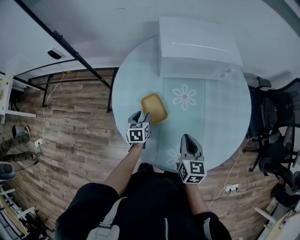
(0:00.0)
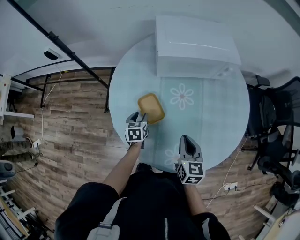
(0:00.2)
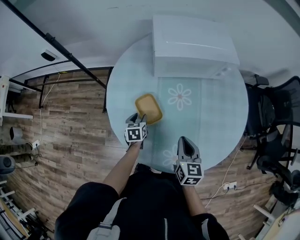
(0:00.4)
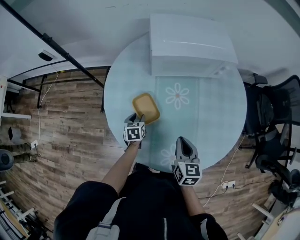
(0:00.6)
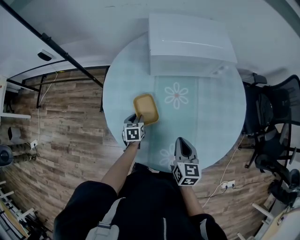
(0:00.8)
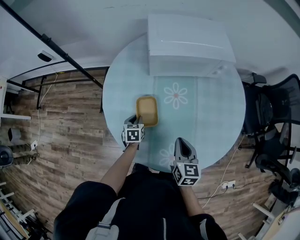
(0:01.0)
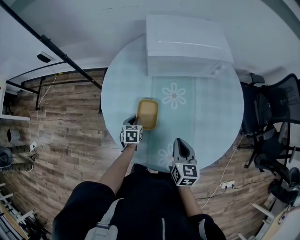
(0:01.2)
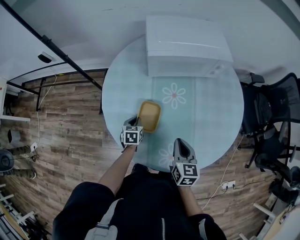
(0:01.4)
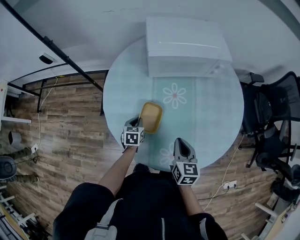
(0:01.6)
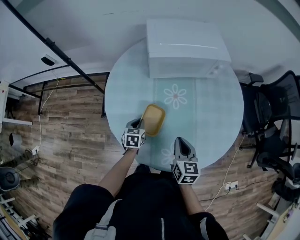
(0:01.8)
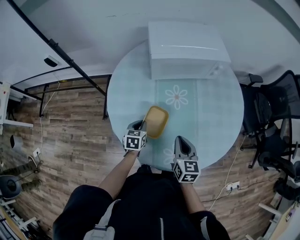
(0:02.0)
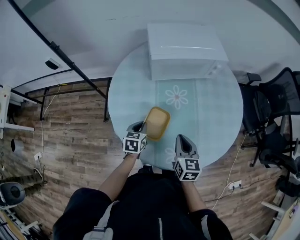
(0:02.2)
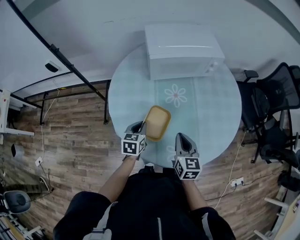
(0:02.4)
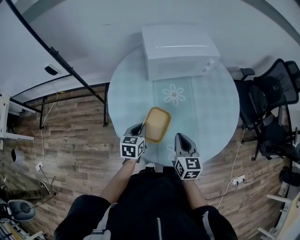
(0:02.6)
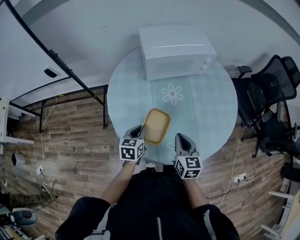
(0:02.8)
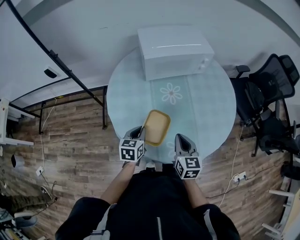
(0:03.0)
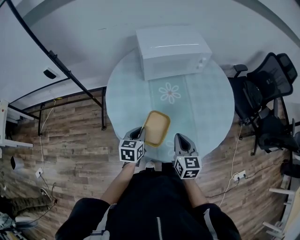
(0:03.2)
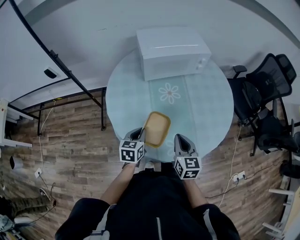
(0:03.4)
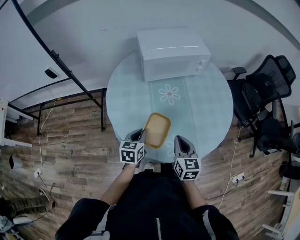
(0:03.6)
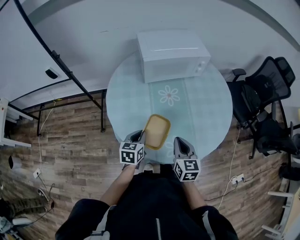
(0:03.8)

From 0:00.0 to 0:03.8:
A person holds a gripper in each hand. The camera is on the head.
From 0:00.0 to 0:01.2: The left gripper travels downward by approximately 5 cm, and closes up.
From 0:01.2 to 0:02.6: The right gripper shifts by some 5 cm. The left gripper goes roughly 15 cm upward and backward.
From 0:02.6 to 0:03.8: The left gripper heads backward, covering approximately 5 cm.

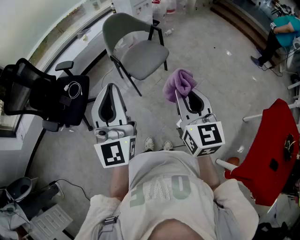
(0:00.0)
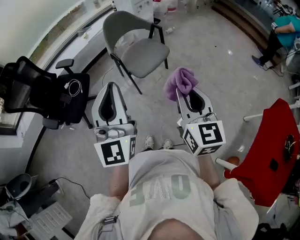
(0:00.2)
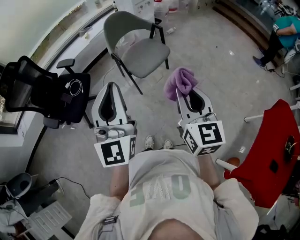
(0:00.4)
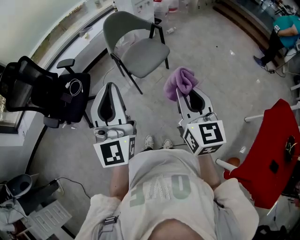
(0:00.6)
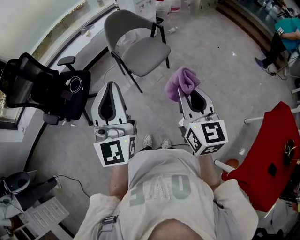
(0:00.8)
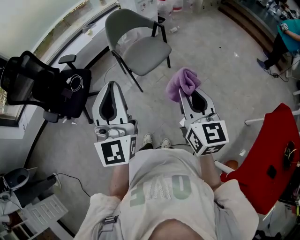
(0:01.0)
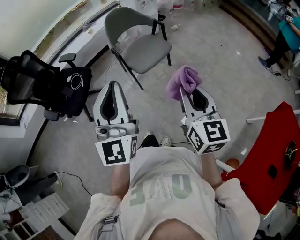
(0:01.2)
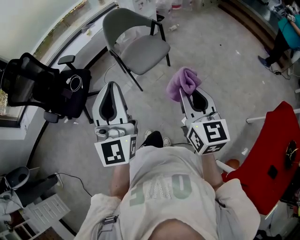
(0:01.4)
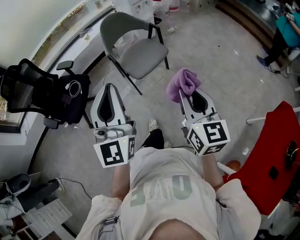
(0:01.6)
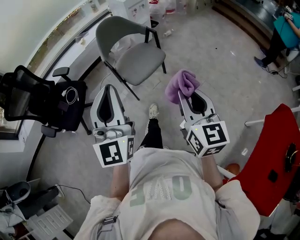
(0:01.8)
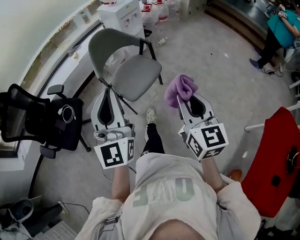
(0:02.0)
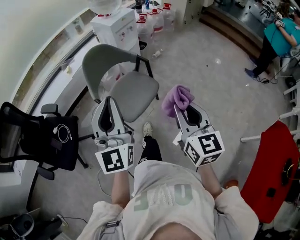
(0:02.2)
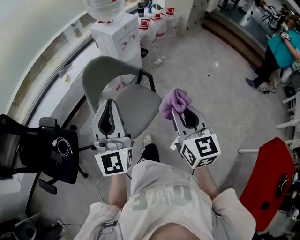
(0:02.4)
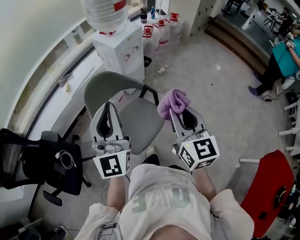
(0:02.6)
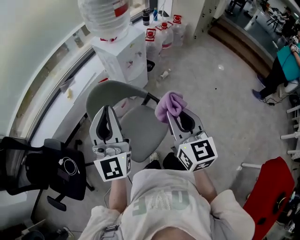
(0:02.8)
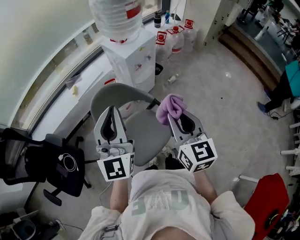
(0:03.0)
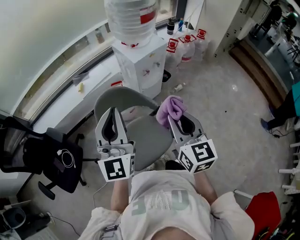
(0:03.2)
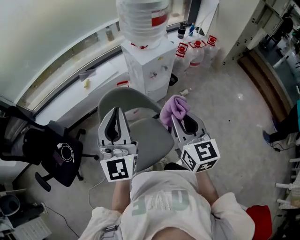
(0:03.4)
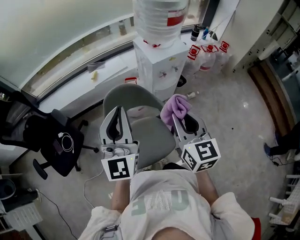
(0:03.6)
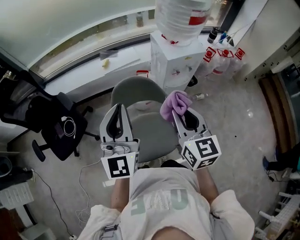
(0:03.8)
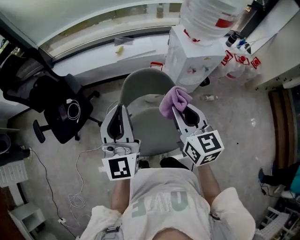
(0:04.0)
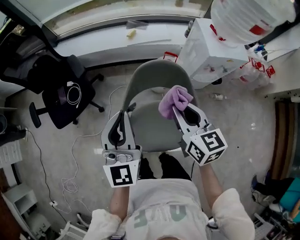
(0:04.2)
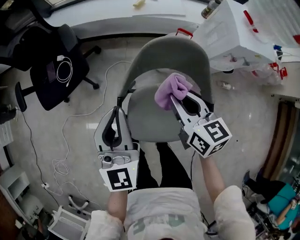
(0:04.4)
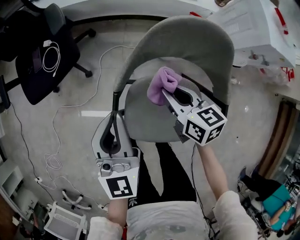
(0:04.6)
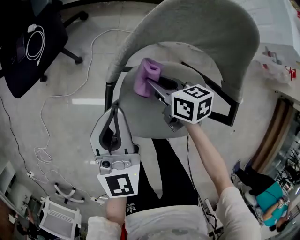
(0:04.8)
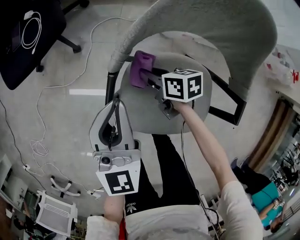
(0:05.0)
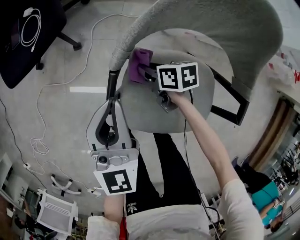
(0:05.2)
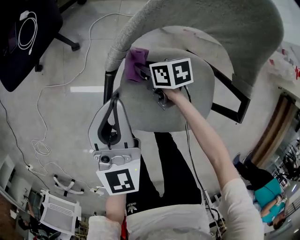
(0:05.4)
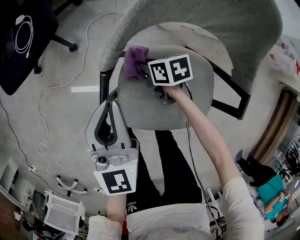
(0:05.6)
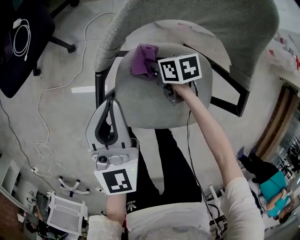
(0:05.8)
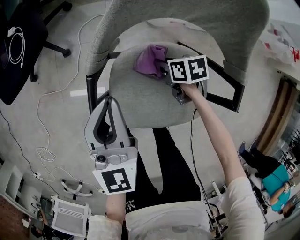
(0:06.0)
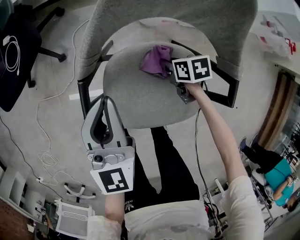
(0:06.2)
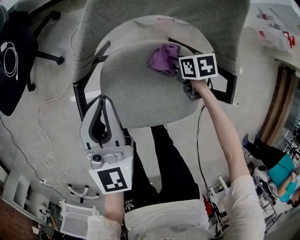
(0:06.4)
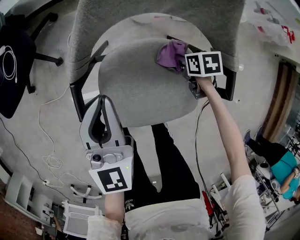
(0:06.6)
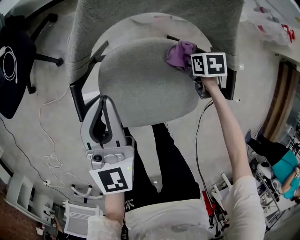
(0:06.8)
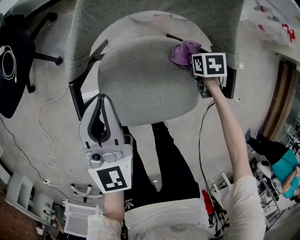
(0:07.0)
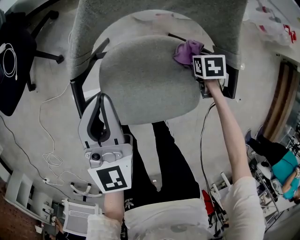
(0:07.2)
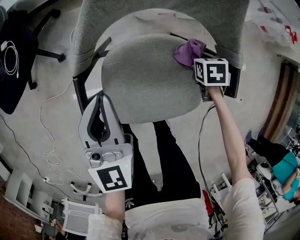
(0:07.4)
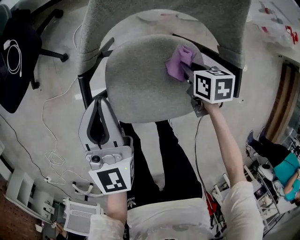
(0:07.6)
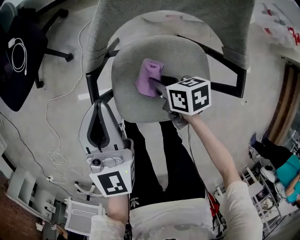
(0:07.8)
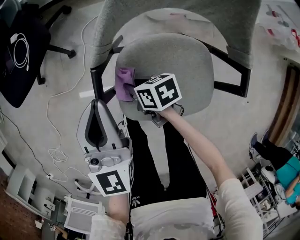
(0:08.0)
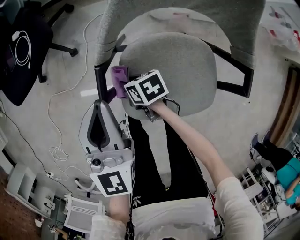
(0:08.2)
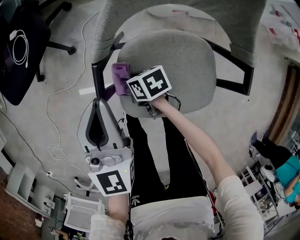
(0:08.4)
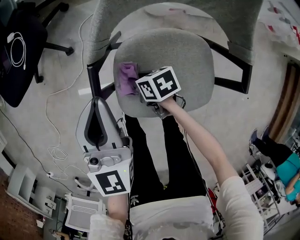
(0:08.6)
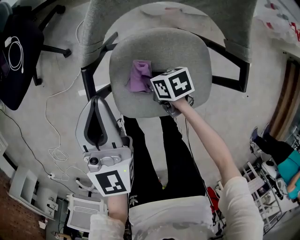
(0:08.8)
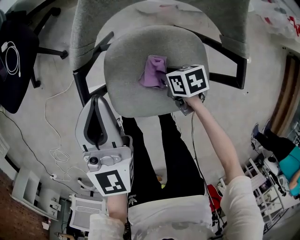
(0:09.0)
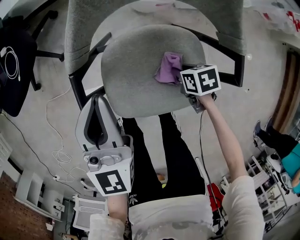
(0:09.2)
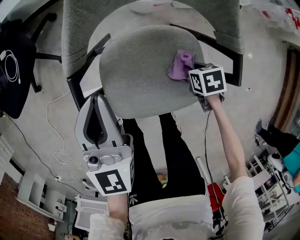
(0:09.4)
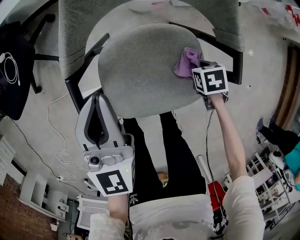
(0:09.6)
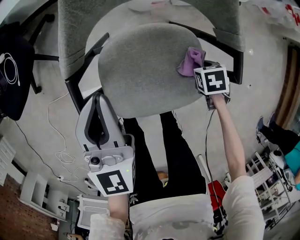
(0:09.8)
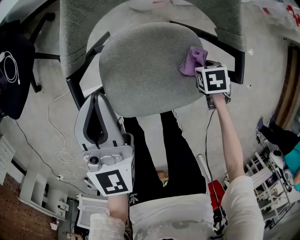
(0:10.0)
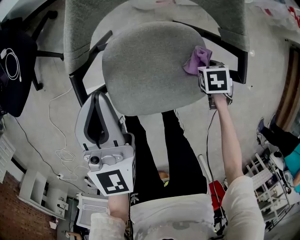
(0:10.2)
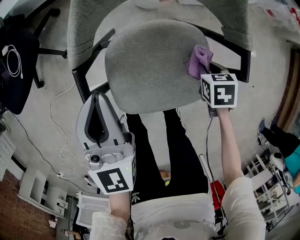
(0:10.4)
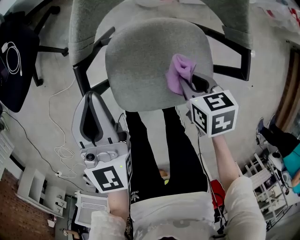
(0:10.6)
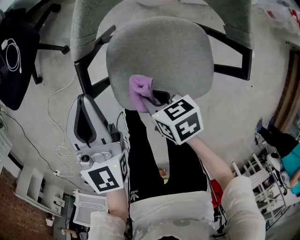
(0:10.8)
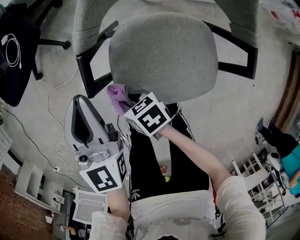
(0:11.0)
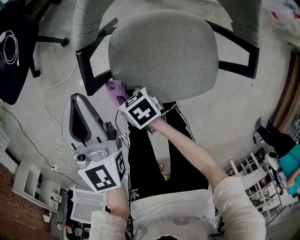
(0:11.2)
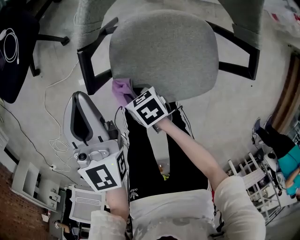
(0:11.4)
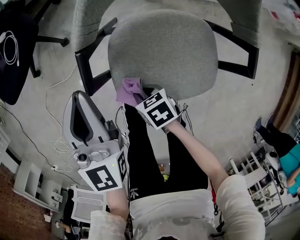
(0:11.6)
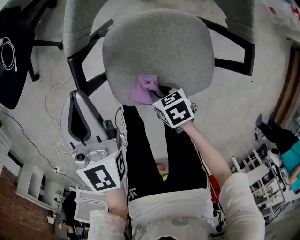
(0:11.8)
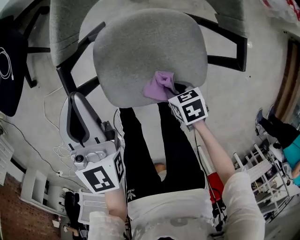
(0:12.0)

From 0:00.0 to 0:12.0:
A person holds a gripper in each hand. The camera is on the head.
From 0:00.0 to 0:01.6: Both grippers travel together to the right, approximately 10 cm.
From 0:01.6 to 0:03.0: The pair of grippers is taken forward, roughly 60 cm.
From 0:03.0 to 0:04.4: The left gripper travels downward by roughly 20 cm, and changes its angle by approximately 50 degrees. Meanwhile the right gripper shifts by roughly 35 cm, and rotates about 60 degrees.
From 0:04.4 to 0:06.0: The right gripper is displaced downward by about 40 cm, and angles its fingers downward, by approximately 30 degrees. Meanwhile the left gripper moves downward, some 25 cm.
From 0:07.6 to 0:09.0: The right gripper moves to the left and downward, about 15 cm.
From 0:09.0 to 0:10.4: The right gripper moves roughly 15 cm, and swivels roughly 30 degrees.
From 0:10.4 to 0:12.0: The right gripper turns by some 20 degrees.

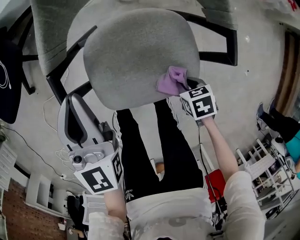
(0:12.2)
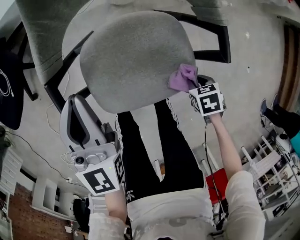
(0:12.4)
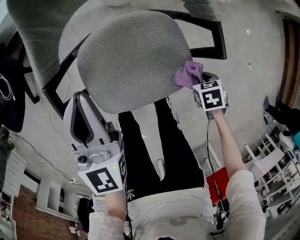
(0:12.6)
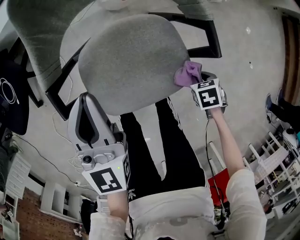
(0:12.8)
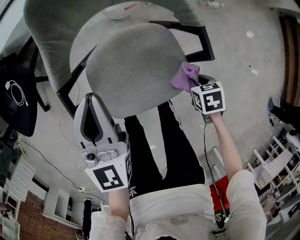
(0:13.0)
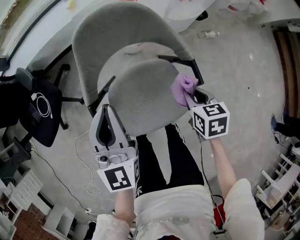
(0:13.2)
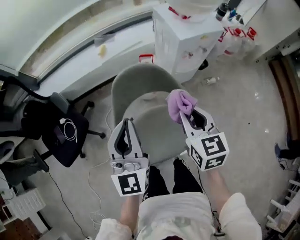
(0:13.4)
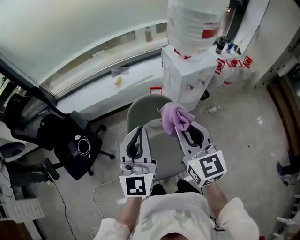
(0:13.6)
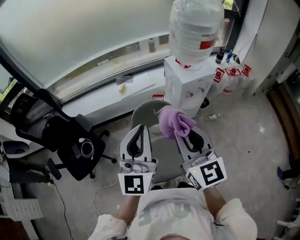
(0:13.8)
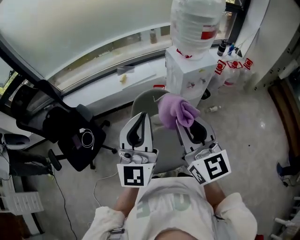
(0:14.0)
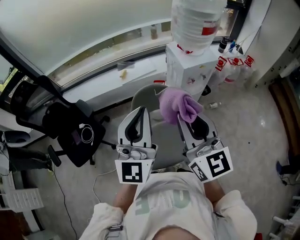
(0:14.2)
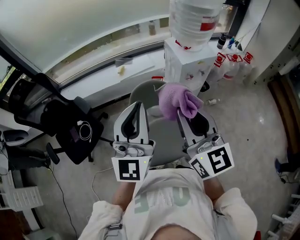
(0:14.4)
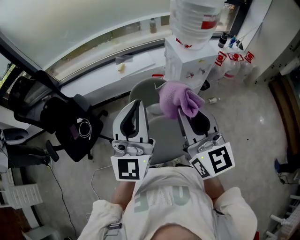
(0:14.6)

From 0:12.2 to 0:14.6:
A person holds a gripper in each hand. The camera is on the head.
From 0:12.2 to 0:13.4: The right gripper shifts approximately 40 cm upward, and tips its fingers upward by some 60 degrees. Meanwhile the left gripper travels upward by about 30 cm, and swivels approximately 30 degrees.
From 0:13.4 to 0:14.6: Both grippers move upward, some 25 cm. The right gripper points its fingers about 30 degrees further upward.

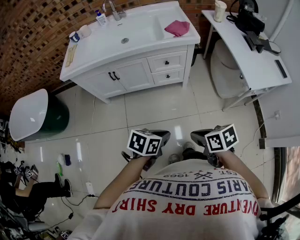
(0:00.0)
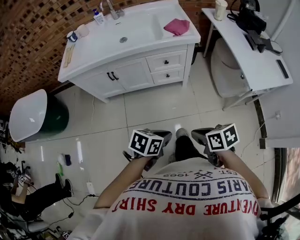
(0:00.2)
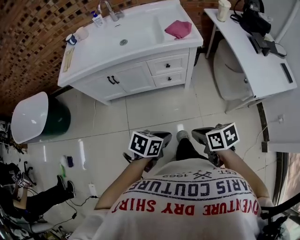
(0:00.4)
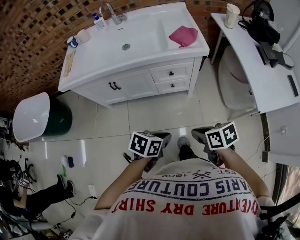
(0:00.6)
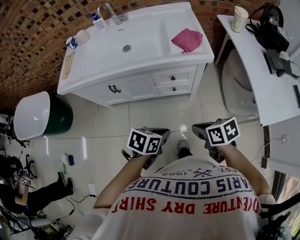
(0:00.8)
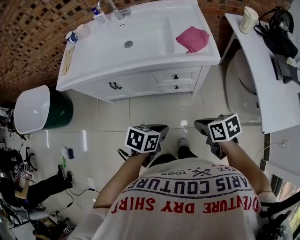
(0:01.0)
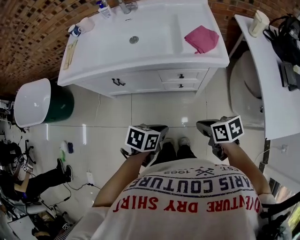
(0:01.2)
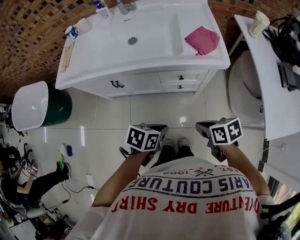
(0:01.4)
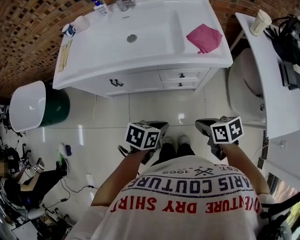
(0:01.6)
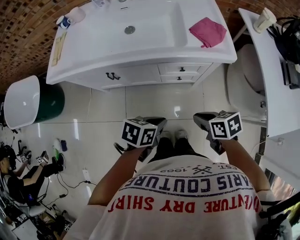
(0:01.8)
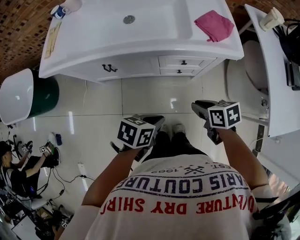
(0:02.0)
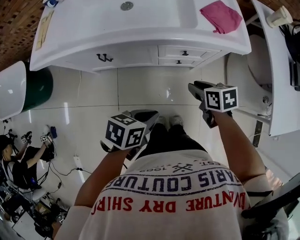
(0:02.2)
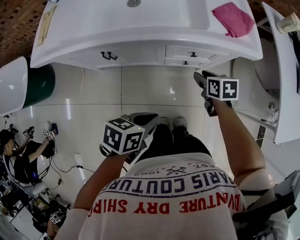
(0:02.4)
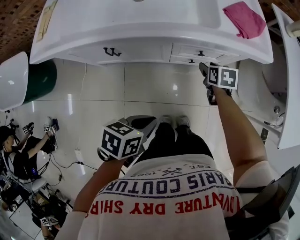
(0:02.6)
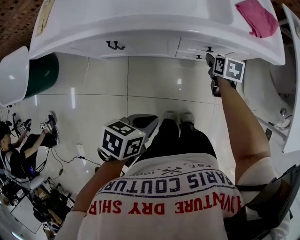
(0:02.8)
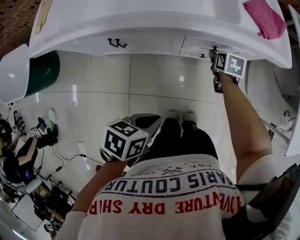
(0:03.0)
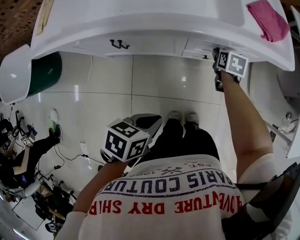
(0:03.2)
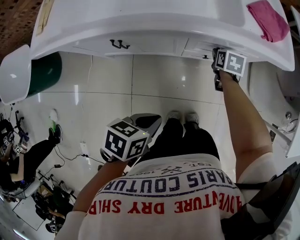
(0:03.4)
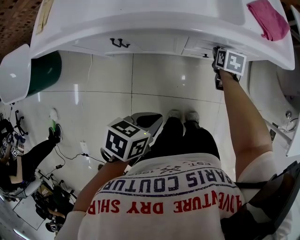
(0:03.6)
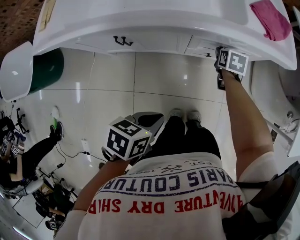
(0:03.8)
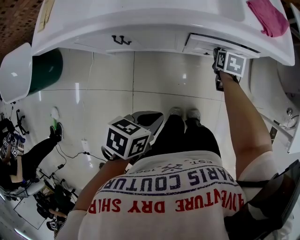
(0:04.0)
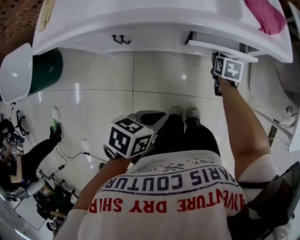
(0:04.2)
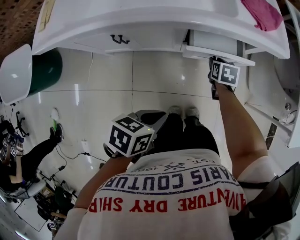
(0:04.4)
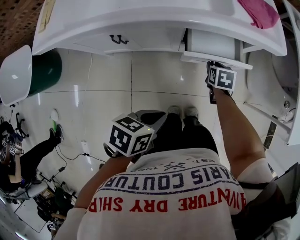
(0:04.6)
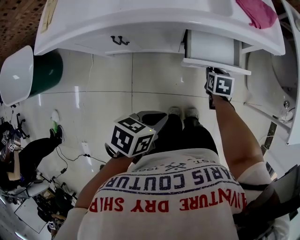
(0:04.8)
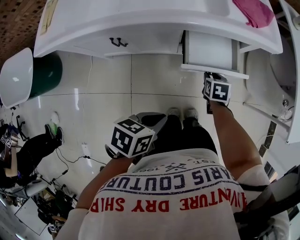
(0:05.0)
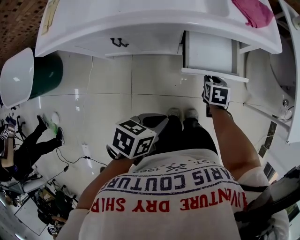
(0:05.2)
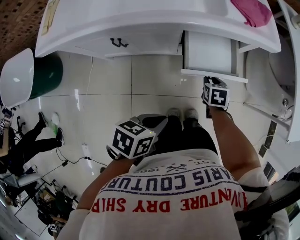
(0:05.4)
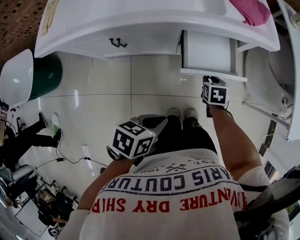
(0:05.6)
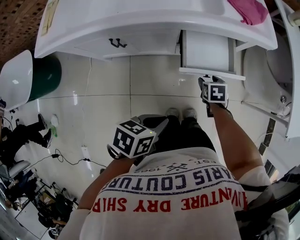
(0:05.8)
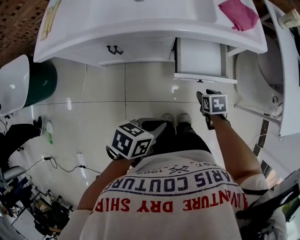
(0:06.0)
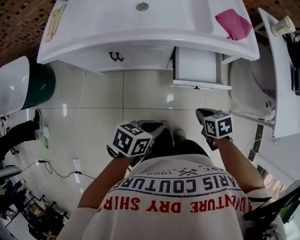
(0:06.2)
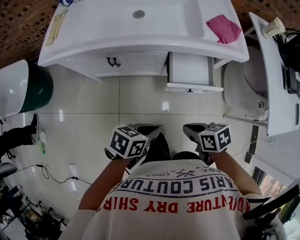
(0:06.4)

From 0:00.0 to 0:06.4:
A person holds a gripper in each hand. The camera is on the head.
From 0:00.0 to 0:01.6: The right gripper moves some 30 cm. Meanwhile the left gripper ends up about 30 cm from where it was.
From 0:01.6 to 0:03.2: The left gripper shifts by approximately 15 cm; the right gripper changes place by about 35 cm, turns by roughly 30 degrees, and opens up.
From 0:03.2 to 0:04.8: The right gripper travels backward and to the right by approximately 15 cm.
From 0:04.8 to 0:06.4: The right gripper changes place by roughly 30 cm, changes its angle by roughly 40 degrees, and closes, while the left gripper moves roughly 5 cm.
